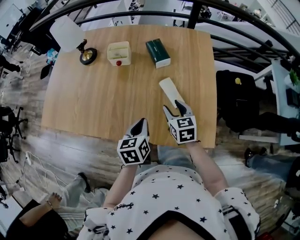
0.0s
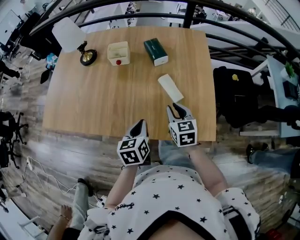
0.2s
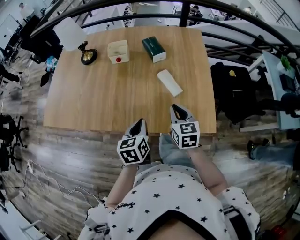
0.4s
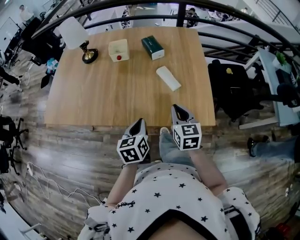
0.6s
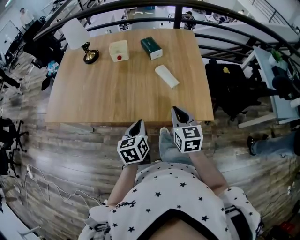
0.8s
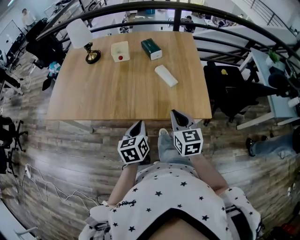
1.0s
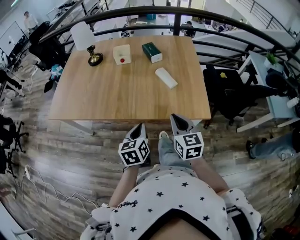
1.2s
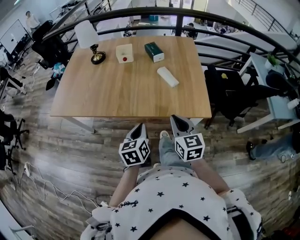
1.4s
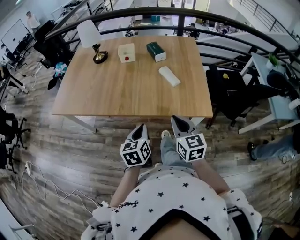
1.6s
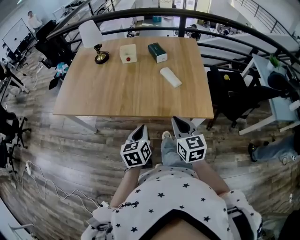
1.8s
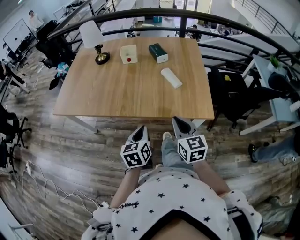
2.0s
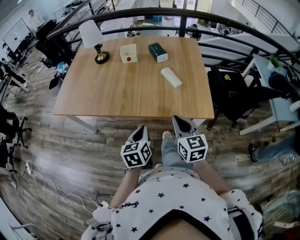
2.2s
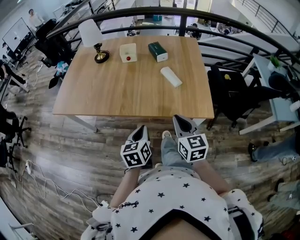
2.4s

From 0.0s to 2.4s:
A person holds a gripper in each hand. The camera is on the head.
From 0.0s to 1.2s: Both grippers travel together backward, roughly 25 cm. The right gripper closes its fingers.
From 1.2s to 2.4s: The grippers make only small movements.

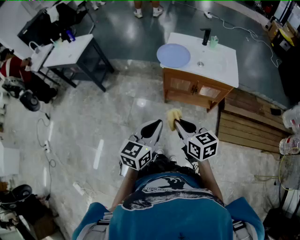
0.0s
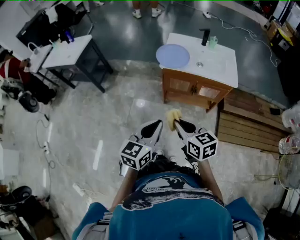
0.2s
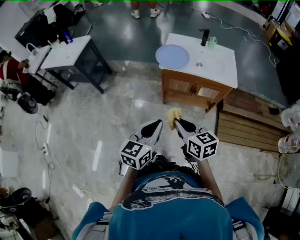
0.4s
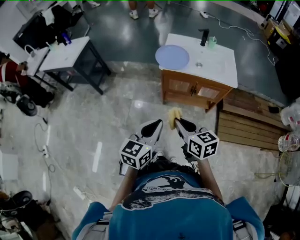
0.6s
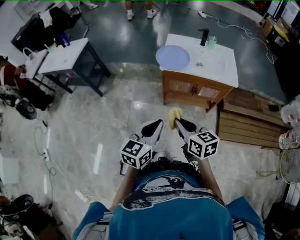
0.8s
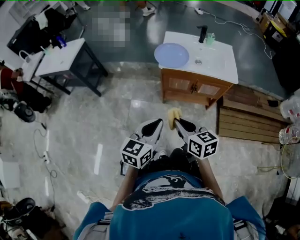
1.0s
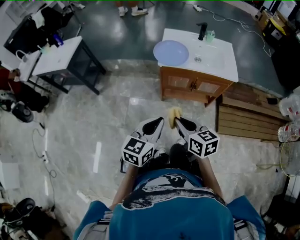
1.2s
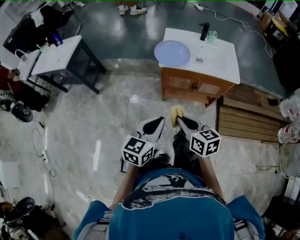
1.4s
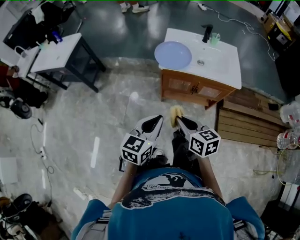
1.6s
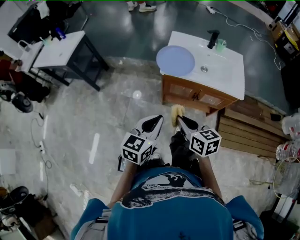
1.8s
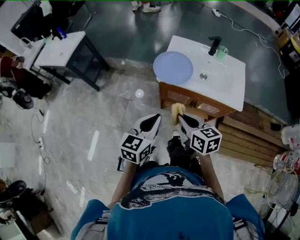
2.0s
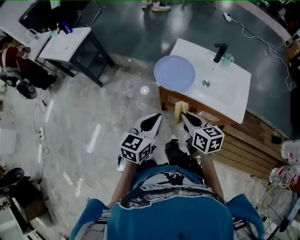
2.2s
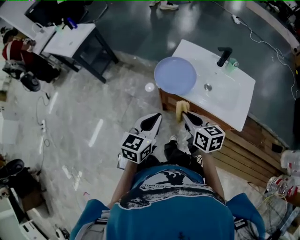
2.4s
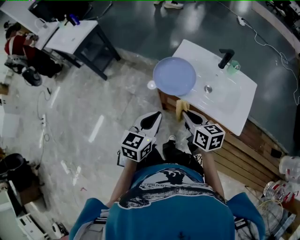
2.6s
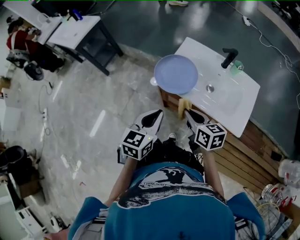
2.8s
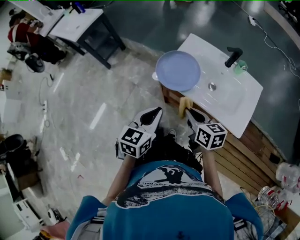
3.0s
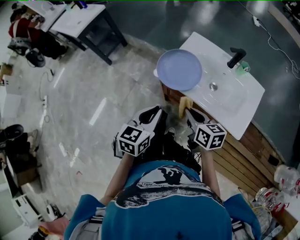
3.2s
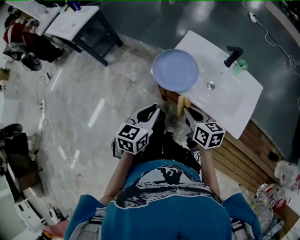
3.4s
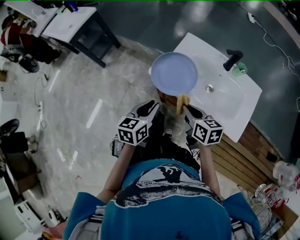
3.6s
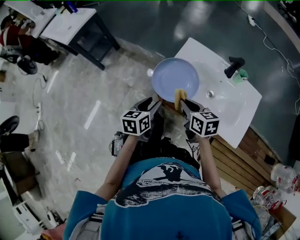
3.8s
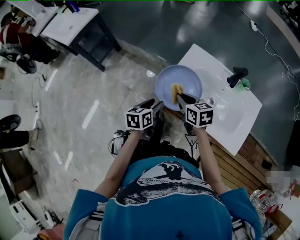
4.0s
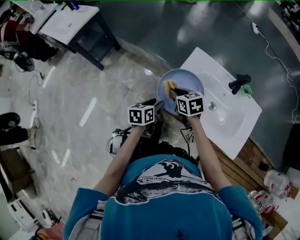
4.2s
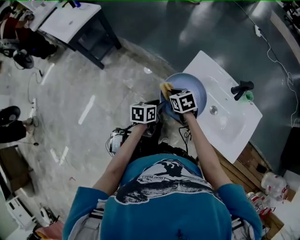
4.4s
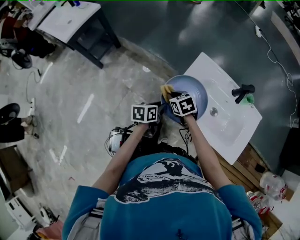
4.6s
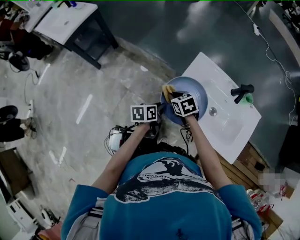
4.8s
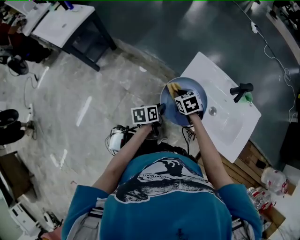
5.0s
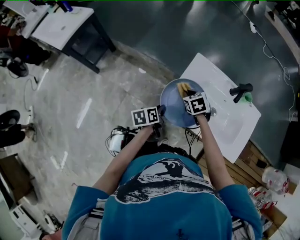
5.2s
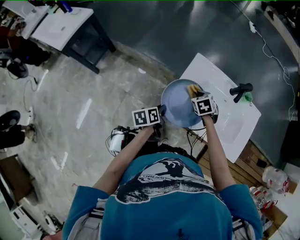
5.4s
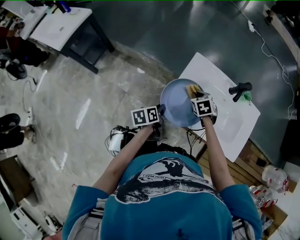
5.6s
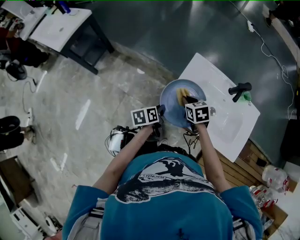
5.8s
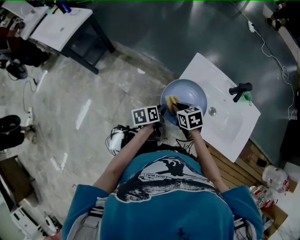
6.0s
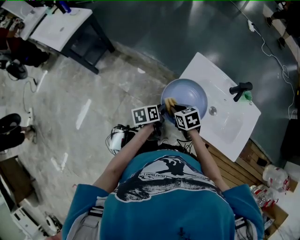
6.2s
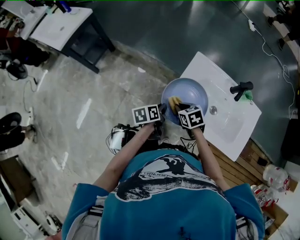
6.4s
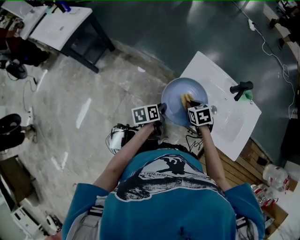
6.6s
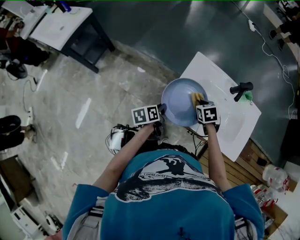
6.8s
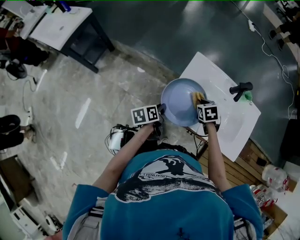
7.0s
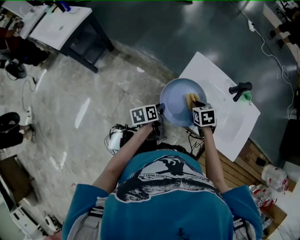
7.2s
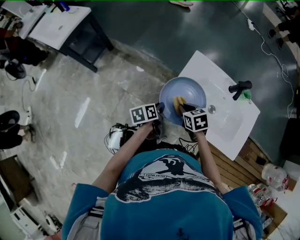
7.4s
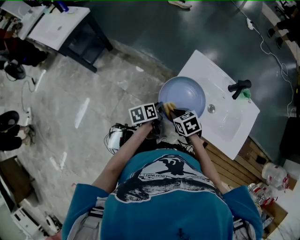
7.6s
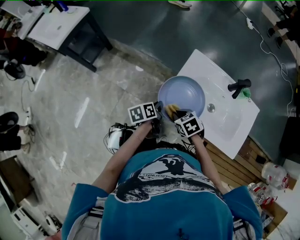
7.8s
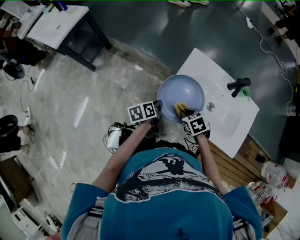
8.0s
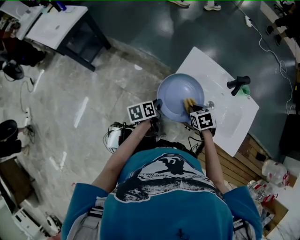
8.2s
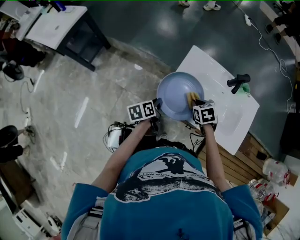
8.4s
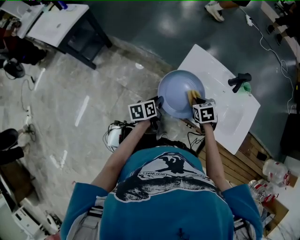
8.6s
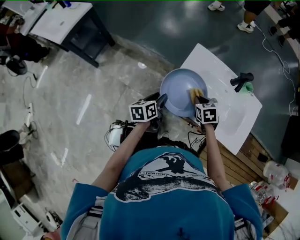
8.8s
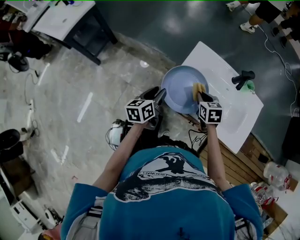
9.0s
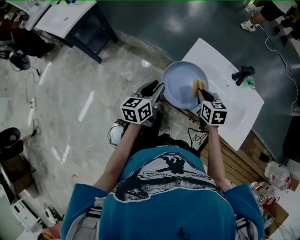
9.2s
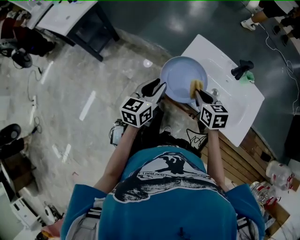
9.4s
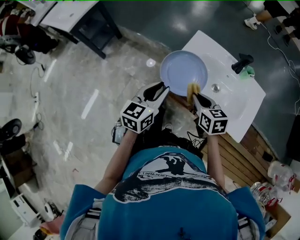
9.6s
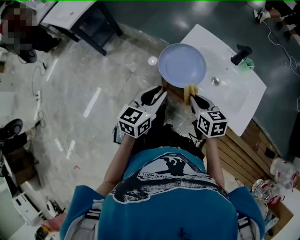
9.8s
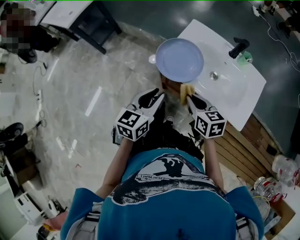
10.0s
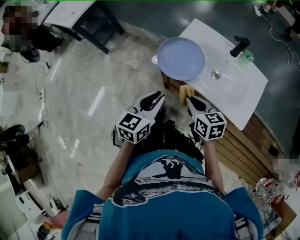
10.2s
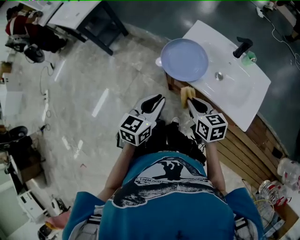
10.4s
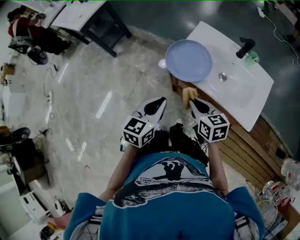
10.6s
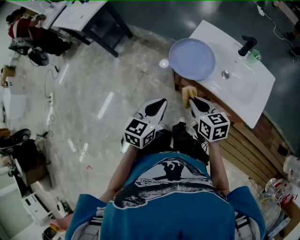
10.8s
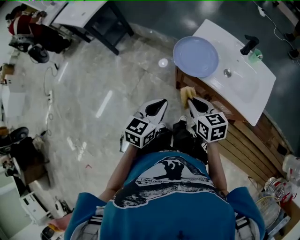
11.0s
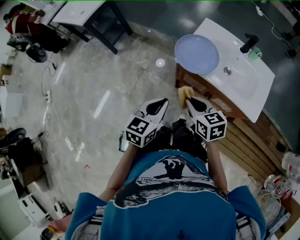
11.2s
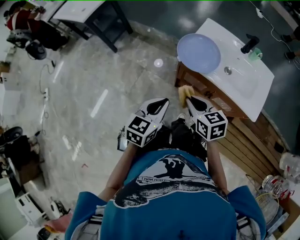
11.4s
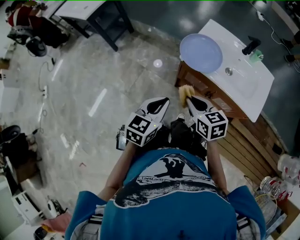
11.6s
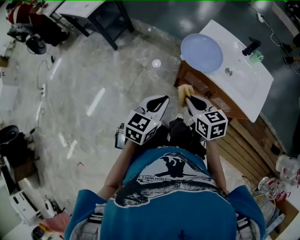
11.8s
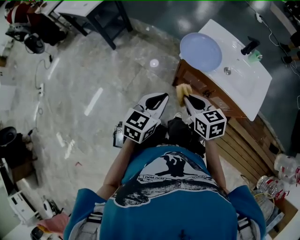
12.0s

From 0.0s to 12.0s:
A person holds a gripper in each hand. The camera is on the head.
From 0.0s to 1.6s: Both grippers move forward, some 10 cm.
From 1.6s to 3.0s: Both grippers travel together forward and to the right, roughly 25 cm. The left gripper rotates some 20 degrees.
From 3.0s to 4.4s: The right gripper heads forward, downward and to the left, covering roughly 30 cm, and rotates approximately 30 degrees. Meanwhile the left gripper goes about 25 cm forward and downward, swivels about 30 degrees, and opens its fingers.
From 4.4s to 6.0s: The right gripper travels to the right and back again, roughly 15 cm each way. The left gripper closes its fingers.
From 6.0s to 7.6s: The right gripper goes to the right and returns, some 15 cm each way.
From 7.6s to 9.0s: The right gripper heads to the right and forward, covering approximately 15 cm, and rotates about 30 degrees, while the left gripper heads upward, covering roughly 10 cm, rotates about 30 degrees, and opens its fingers.
From 9.0s to 10.4s: The left gripper travels backward and upward by some 25 cm, turns by about 20 degrees, and closes its fingers, while the right gripper travels backward by about 20 cm, and rotates about 30 degrees.
From 10.4s to 12.0s: Both grippers move to the left and backward, roughly 10 cm.

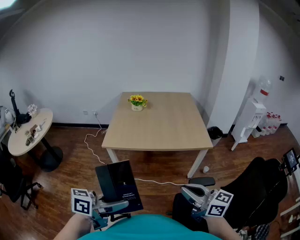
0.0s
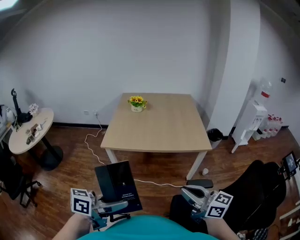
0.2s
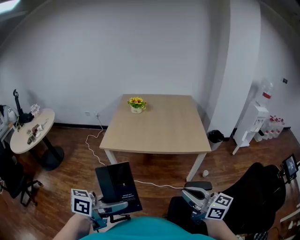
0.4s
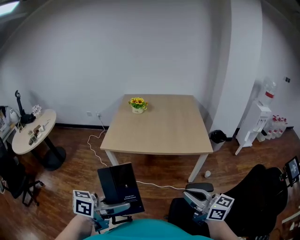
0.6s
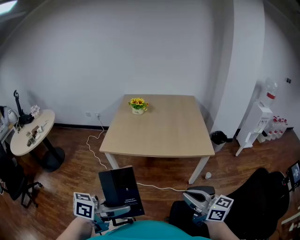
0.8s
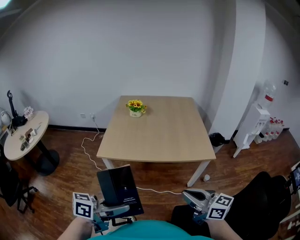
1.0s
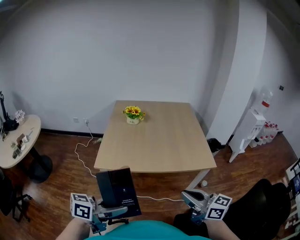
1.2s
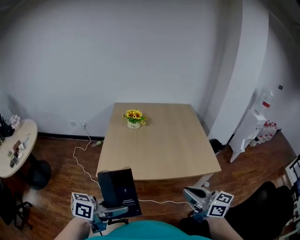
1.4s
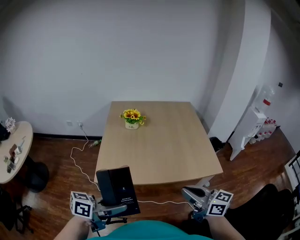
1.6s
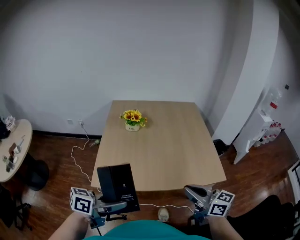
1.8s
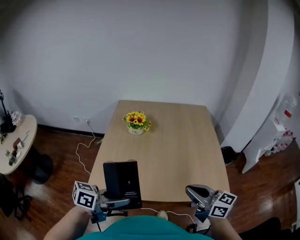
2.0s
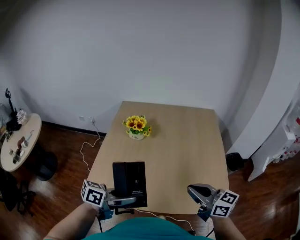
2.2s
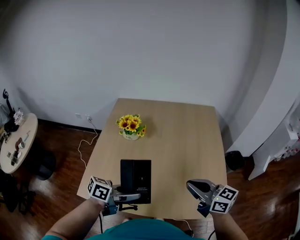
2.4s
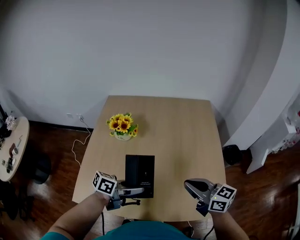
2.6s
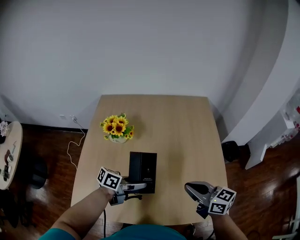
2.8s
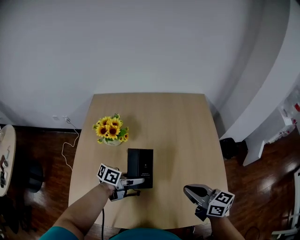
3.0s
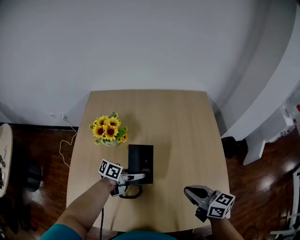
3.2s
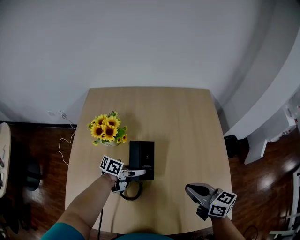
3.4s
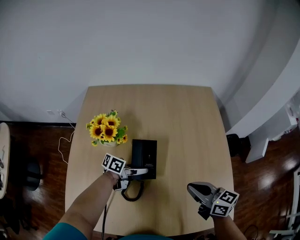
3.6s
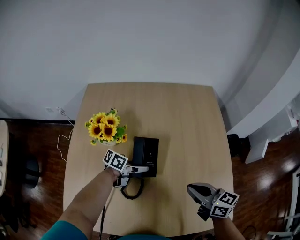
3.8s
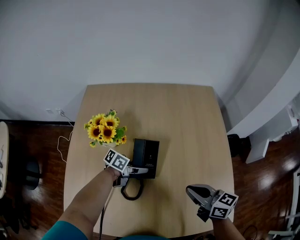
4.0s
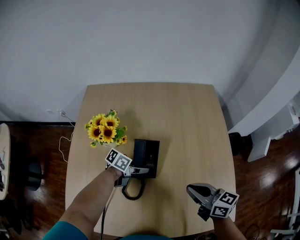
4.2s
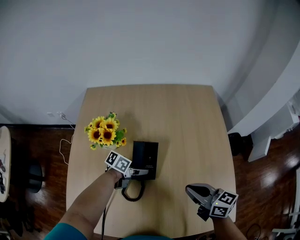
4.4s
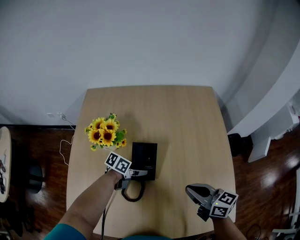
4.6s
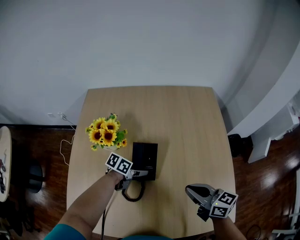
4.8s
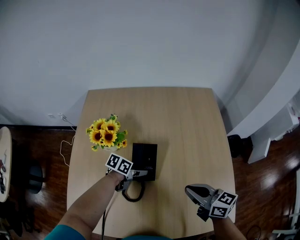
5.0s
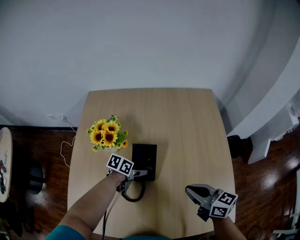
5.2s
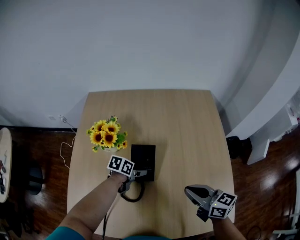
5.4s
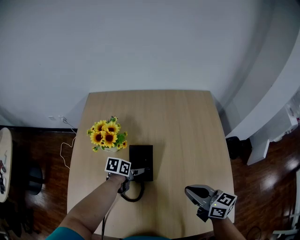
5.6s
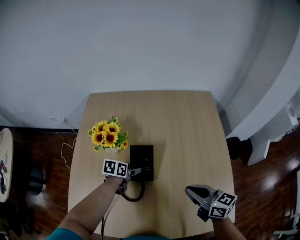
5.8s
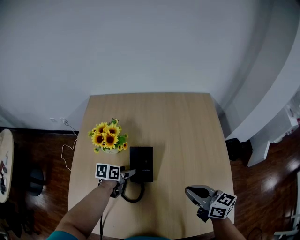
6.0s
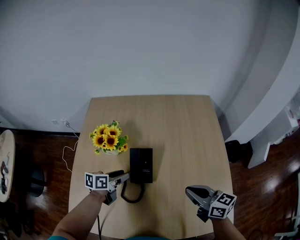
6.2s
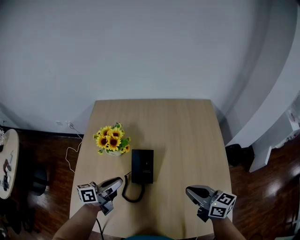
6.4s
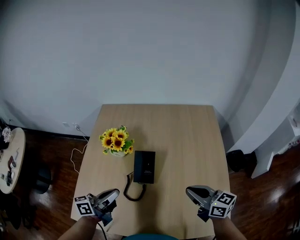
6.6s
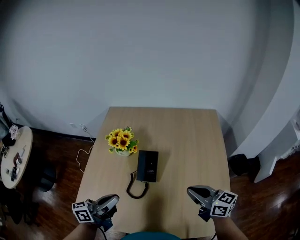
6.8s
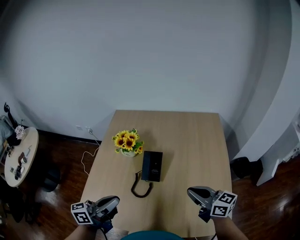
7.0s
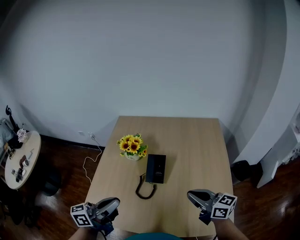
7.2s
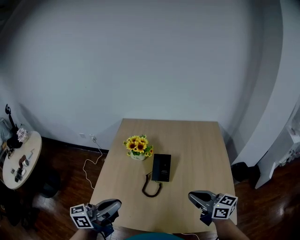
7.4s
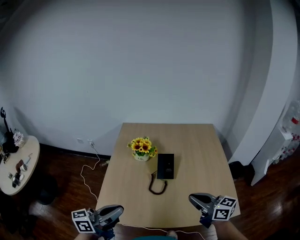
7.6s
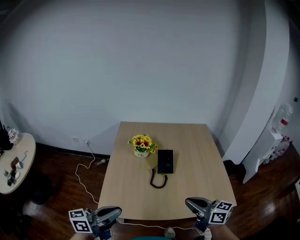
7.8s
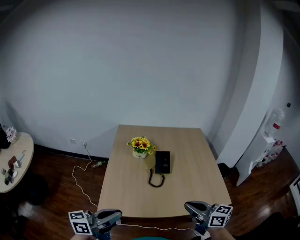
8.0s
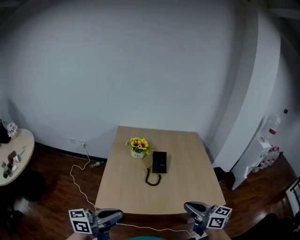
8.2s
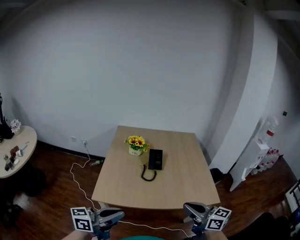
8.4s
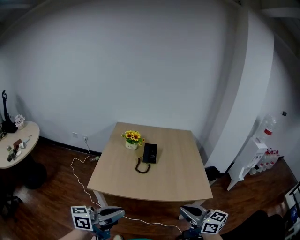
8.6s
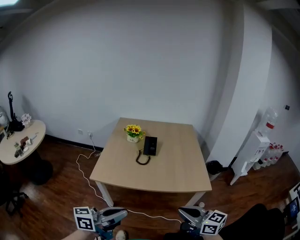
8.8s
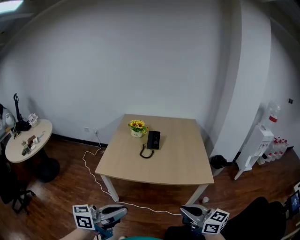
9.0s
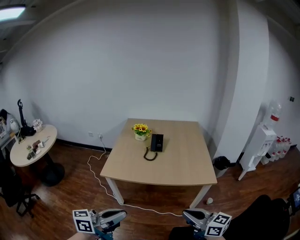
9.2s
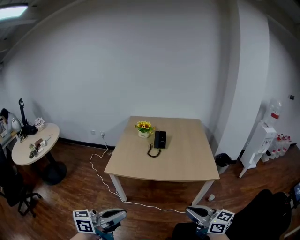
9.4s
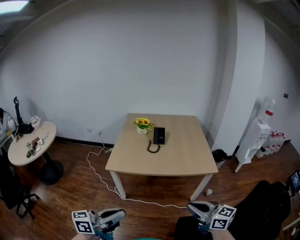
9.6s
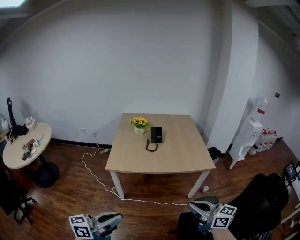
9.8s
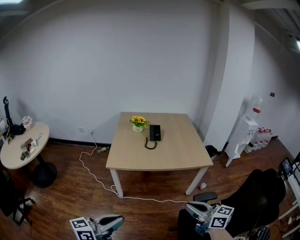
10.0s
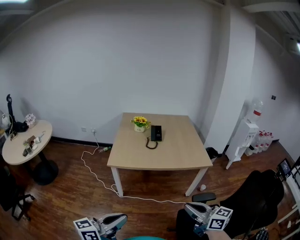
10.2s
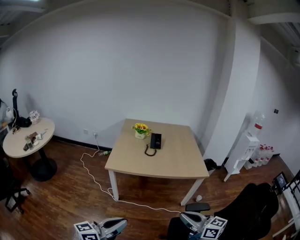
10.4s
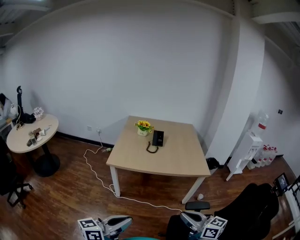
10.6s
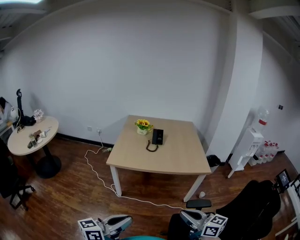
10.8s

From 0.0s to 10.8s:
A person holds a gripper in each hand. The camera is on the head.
From 0.0s to 1.6s: The left gripper is displaced forward and to the left by some 30 cm. Meanwhile the right gripper moves forward, about 25 cm.
From 1.6s to 3.0s: The left gripper changes place by about 50 cm, while the right gripper shifts by about 40 cm.
From 3.0s to 4.6s: The left gripper shifts roughly 10 cm downward. Meanwhile the right gripper shifts by about 10 cm.
From 4.6s to 6.2s: The left gripper shifts by about 10 cm, changes its angle by approximately 30 degrees, and opens, then closes once more.
From 6.2s to 7.8s: The left gripper travels backward, upward and to the left by roughly 50 cm, tilts its fingers some 40 degrees upward, and closes. Meanwhile the right gripper heads backward, to the left and upward, covering roughly 30 cm.
From 7.8s to 9.2s: The grippers both shift backward and to the right by approximately 40 cm.
From 9.2s to 10.8s: The left gripper moves backward, some 15 cm; the right gripper is displaced backward and to the left by some 15 cm.
